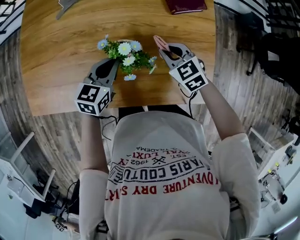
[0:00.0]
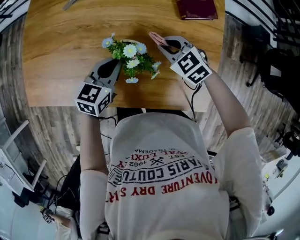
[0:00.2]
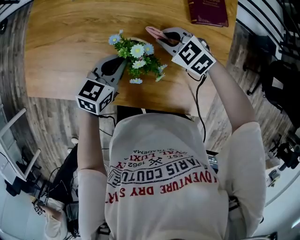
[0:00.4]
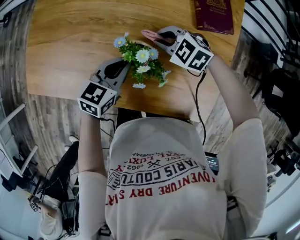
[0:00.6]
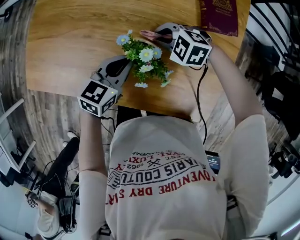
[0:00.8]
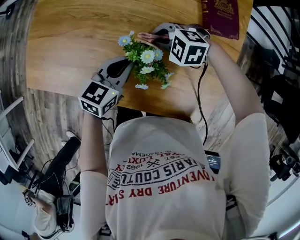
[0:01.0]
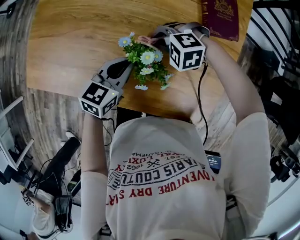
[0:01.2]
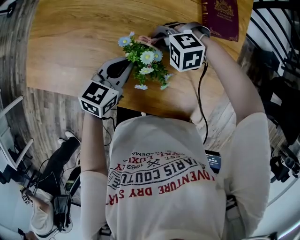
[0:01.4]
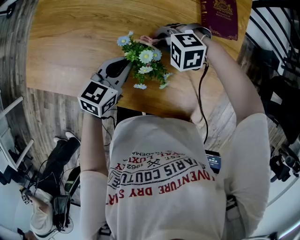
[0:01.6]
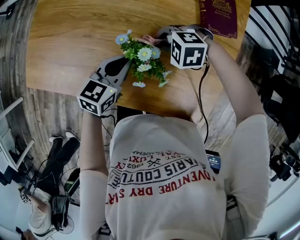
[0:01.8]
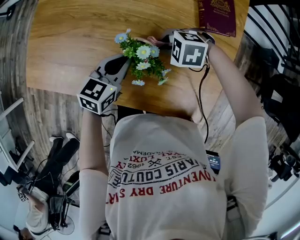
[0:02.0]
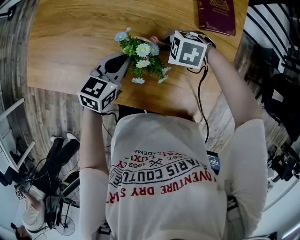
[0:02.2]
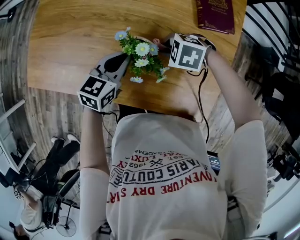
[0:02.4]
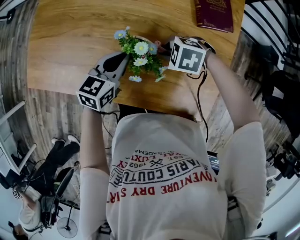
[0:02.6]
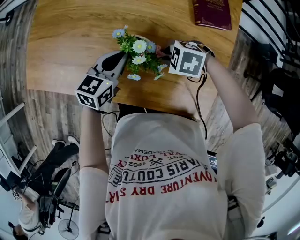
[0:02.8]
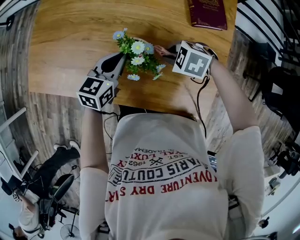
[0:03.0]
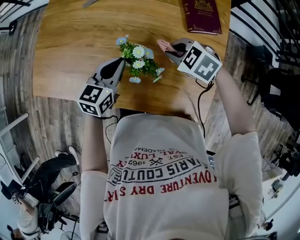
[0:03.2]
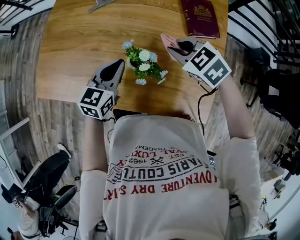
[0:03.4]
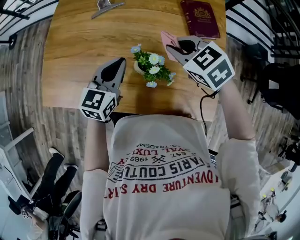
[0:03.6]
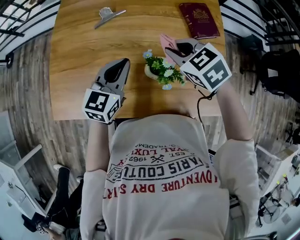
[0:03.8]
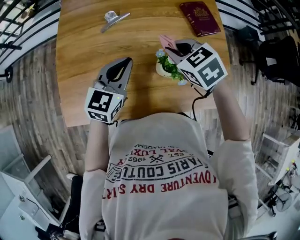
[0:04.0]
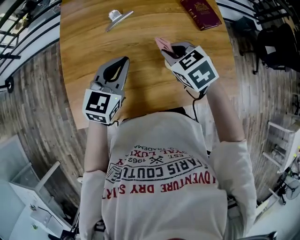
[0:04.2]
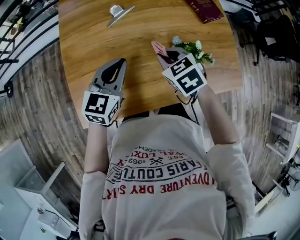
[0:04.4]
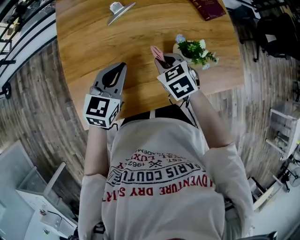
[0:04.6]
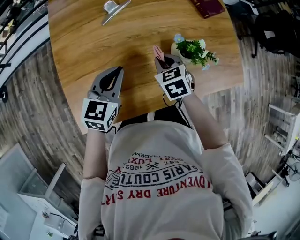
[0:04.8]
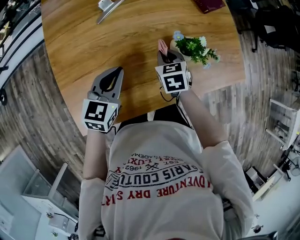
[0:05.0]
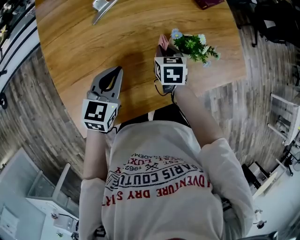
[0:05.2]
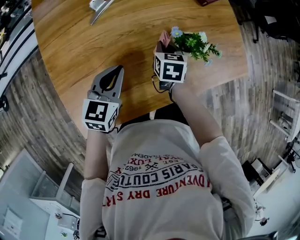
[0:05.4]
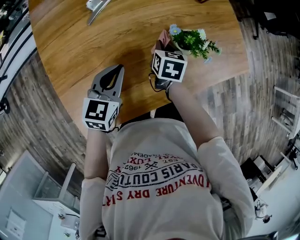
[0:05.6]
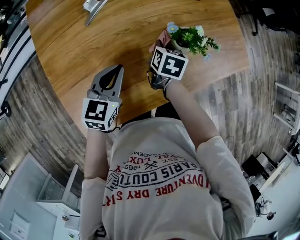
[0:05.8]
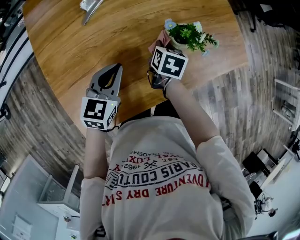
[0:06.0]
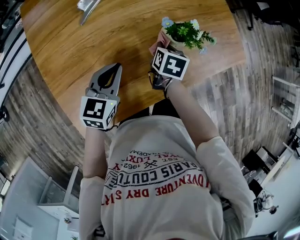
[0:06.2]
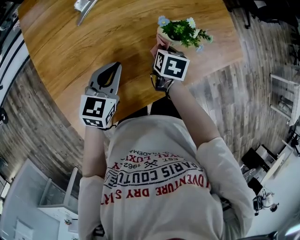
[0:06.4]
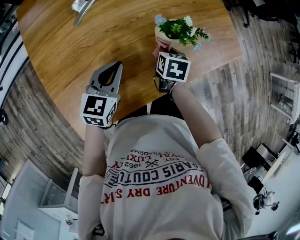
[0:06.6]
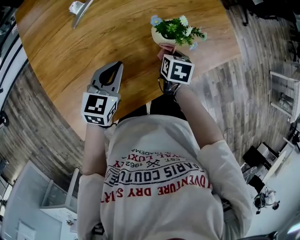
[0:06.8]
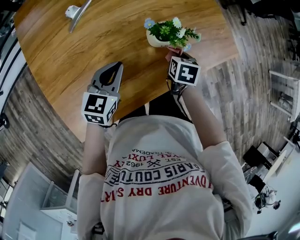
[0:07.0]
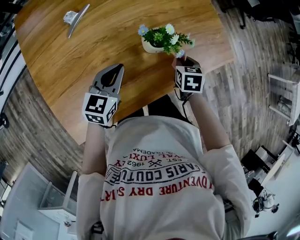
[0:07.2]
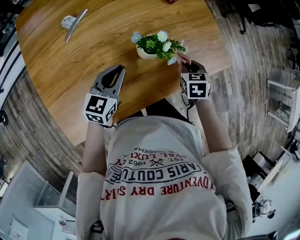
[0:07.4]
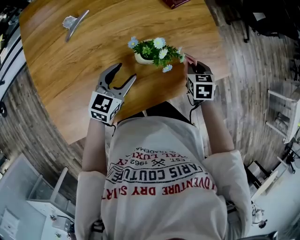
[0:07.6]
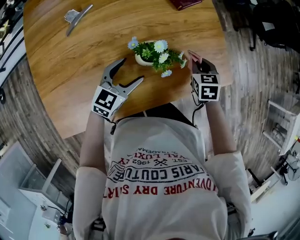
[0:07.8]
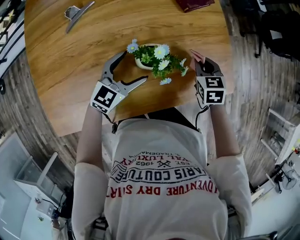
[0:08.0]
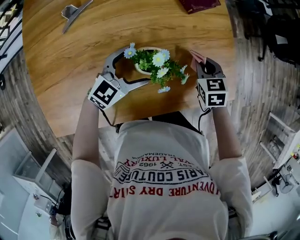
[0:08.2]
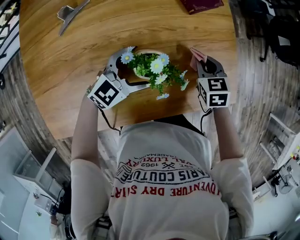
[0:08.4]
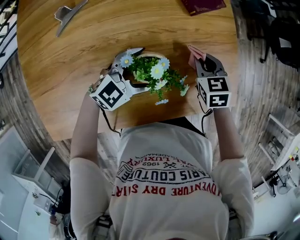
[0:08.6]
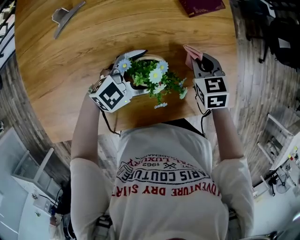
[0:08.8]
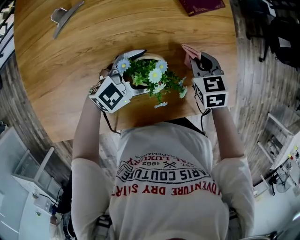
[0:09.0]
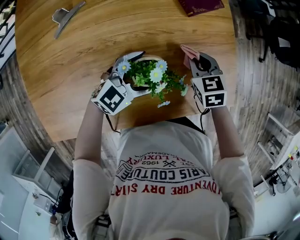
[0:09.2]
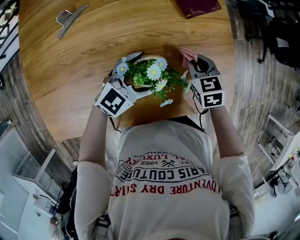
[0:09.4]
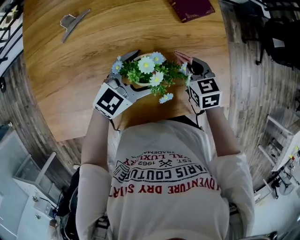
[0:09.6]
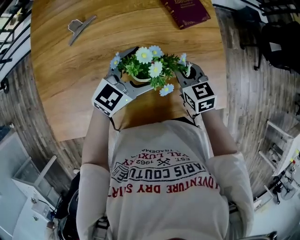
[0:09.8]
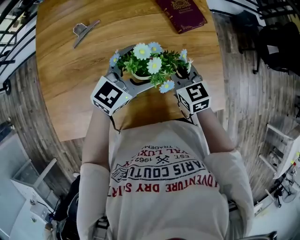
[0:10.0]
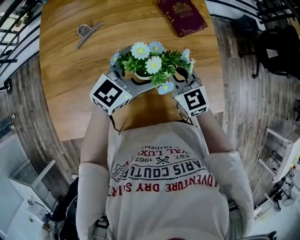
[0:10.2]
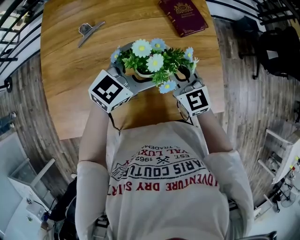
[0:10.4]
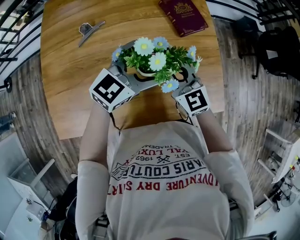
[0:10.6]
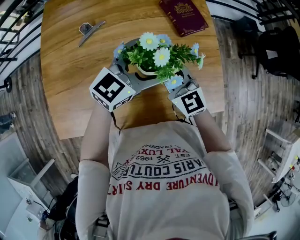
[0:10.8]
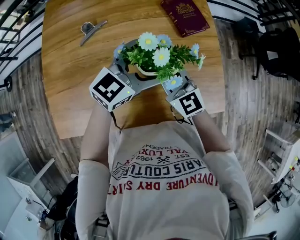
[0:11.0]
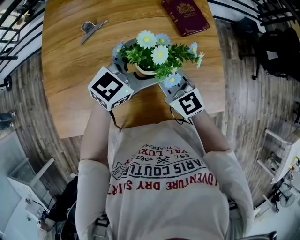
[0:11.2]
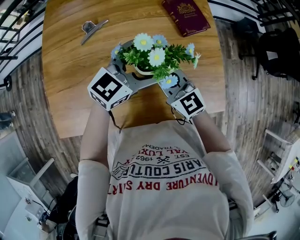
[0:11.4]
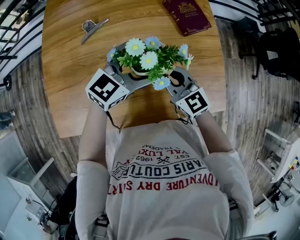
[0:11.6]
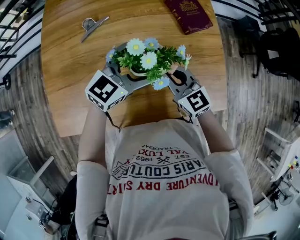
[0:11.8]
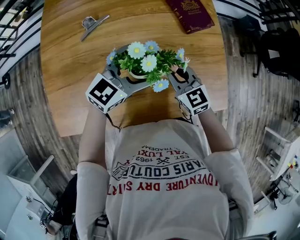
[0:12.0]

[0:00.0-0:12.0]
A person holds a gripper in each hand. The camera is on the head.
0:00.0 to 0:01.6: The right gripper ends up about 10 cm from where it was, and rolls counterclockwise, seen from behind, by approximately 60 degrees.
0:01.6 to 0:03.0: The right gripper ends up some 10 cm from where it was, and rotates some 30 degrees.
0:03.0 to 0:04.4: The right gripper shifts by about 25 cm, and swivels some 60 degrees. The left gripper ends up about 25 cm from where it was, and rotates roughly 30 degrees.
0:04.4 to 0:06.0: The left gripper moves downward, roughly 10 cm; the right gripper heads downward, covering about 15 cm, and rolls clockwise, seen from behind, by roughly 60 degrees.
0:06.0 to 0:07.6: The right gripper moves to the right, approximately 25 cm, and swivels some 30 degrees. Meanwhile the left gripper moves to the right and forward, approximately 15 cm, and opens its fingers.
0:07.6 to 0:09.0: The right gripper heads forward and to the left, covering roughly 15 cm, and turns by roughly 30 degrees; the left gripper heads forward and to the right, covering roughly 15 cm, rotates roughly 30 degrees, and opens its fingers.
0:09.0 to 0:10.4: The right gripper moves upward and to the left, roughly 20 cm, and points its fingers about 30 degrees further upward. The left gripper moves upward, some 20 cm, and changes its angle by roughly 20 degrees.
0:10.4 to 0:12.0: The right gripper moves downward, roughly 5 cm. The left gripper moves approximately 5 cm.

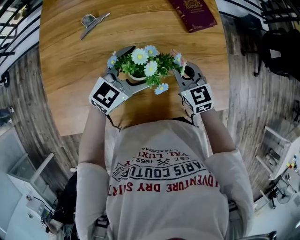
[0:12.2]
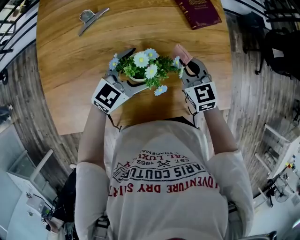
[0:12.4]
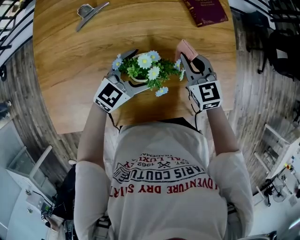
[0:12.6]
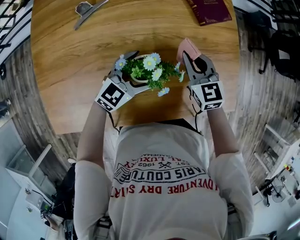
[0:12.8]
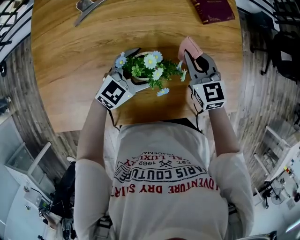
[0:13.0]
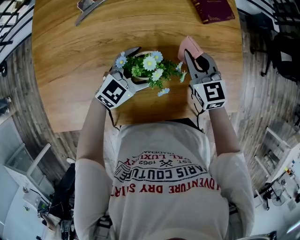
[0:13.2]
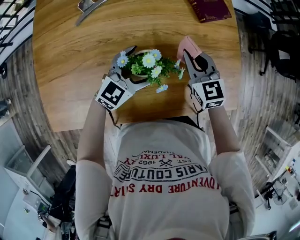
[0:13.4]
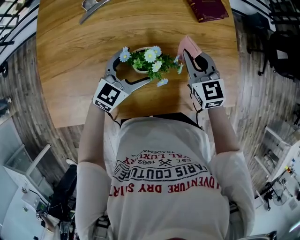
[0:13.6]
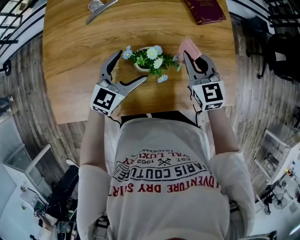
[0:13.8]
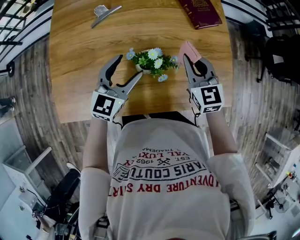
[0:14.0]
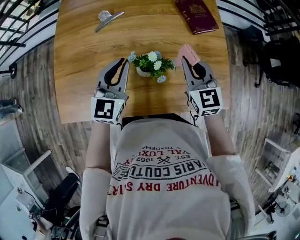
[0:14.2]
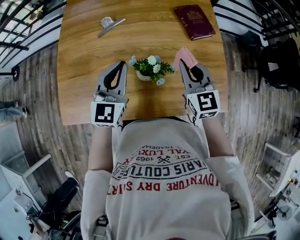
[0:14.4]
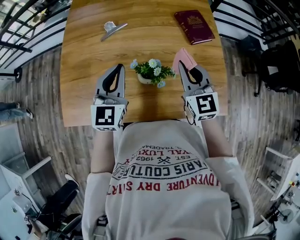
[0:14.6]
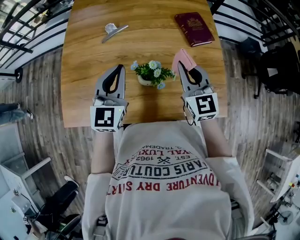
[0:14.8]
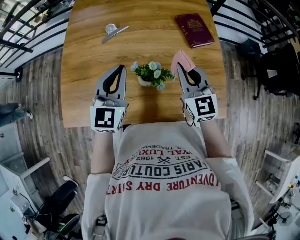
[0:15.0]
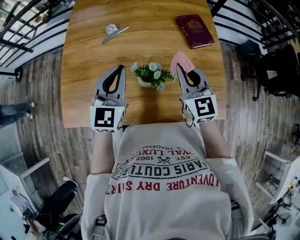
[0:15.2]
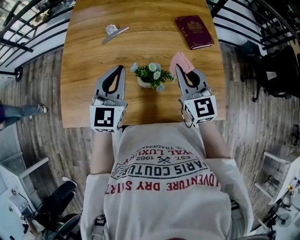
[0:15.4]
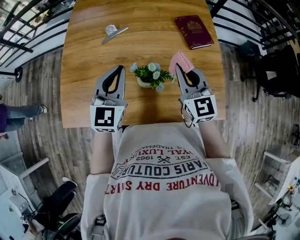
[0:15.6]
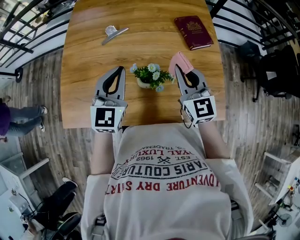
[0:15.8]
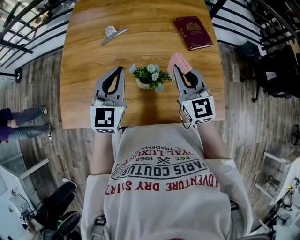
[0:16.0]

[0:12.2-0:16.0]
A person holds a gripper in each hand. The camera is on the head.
0:12.2 to 0:13.4: The left gripper is displaced downward by some 10 cm.
0:13.4 to 0:14.8: The left gripper moves upward and to the left, roughly 25 cm, swivels about 40 degrees, and closes its fingers, while the right gripper is displaced upward by roughly 15 cm.
0:14.8 to 0:16.0: Both grippers stay put.

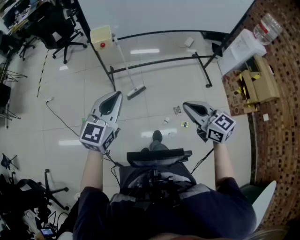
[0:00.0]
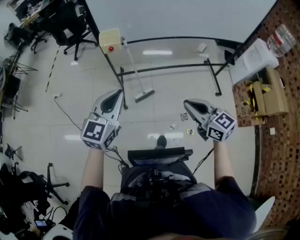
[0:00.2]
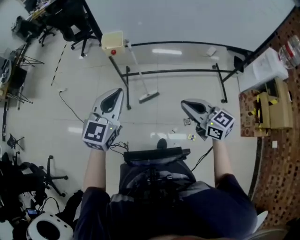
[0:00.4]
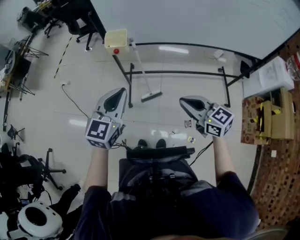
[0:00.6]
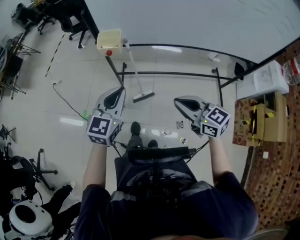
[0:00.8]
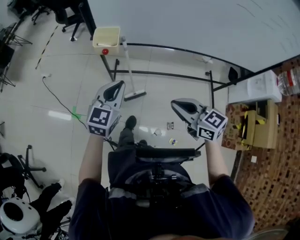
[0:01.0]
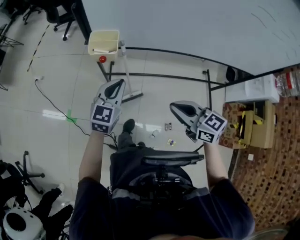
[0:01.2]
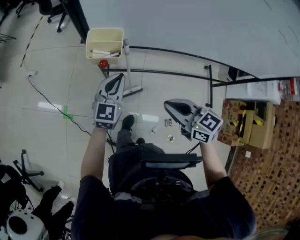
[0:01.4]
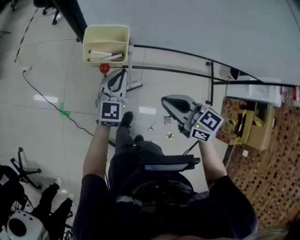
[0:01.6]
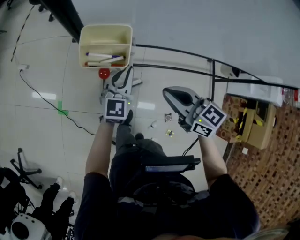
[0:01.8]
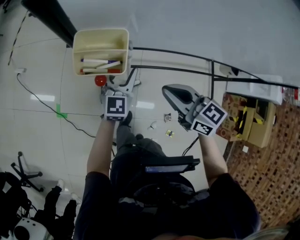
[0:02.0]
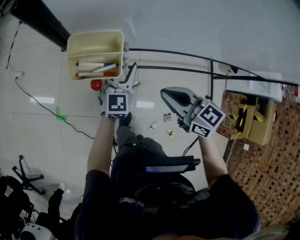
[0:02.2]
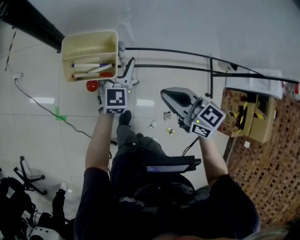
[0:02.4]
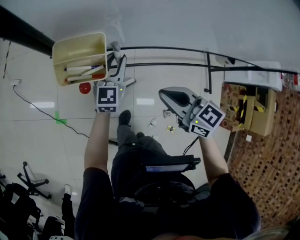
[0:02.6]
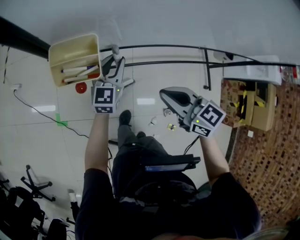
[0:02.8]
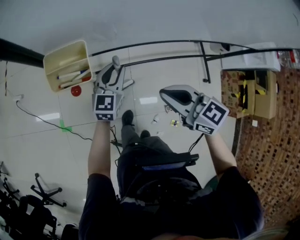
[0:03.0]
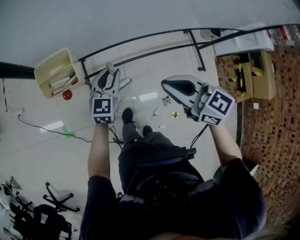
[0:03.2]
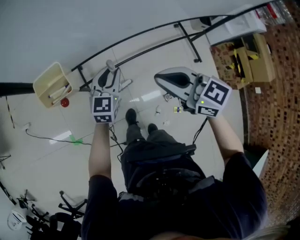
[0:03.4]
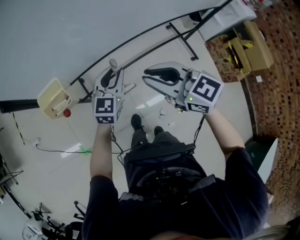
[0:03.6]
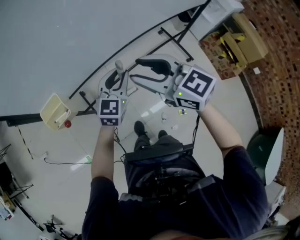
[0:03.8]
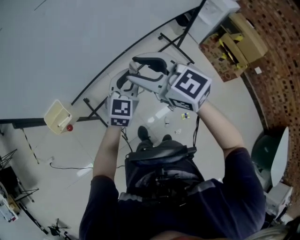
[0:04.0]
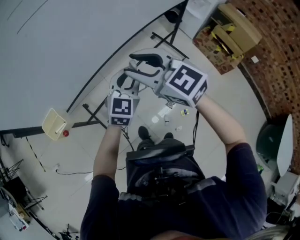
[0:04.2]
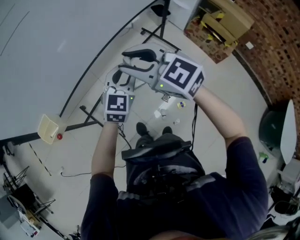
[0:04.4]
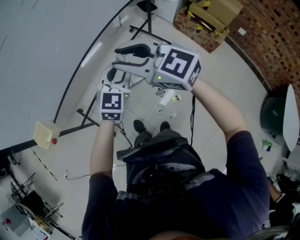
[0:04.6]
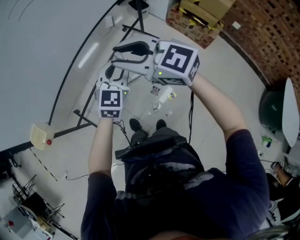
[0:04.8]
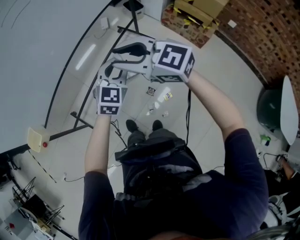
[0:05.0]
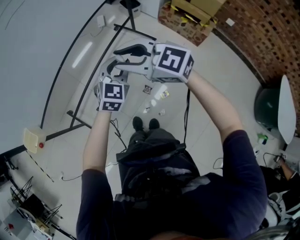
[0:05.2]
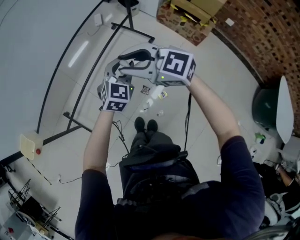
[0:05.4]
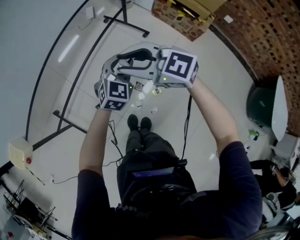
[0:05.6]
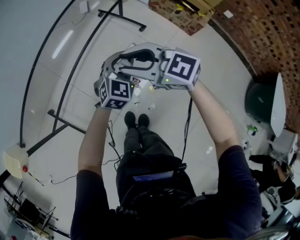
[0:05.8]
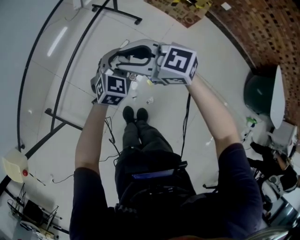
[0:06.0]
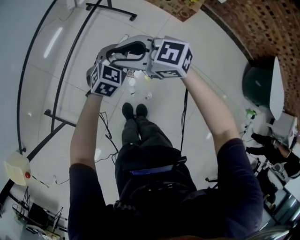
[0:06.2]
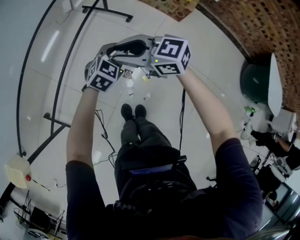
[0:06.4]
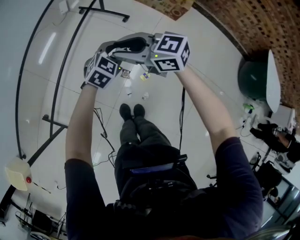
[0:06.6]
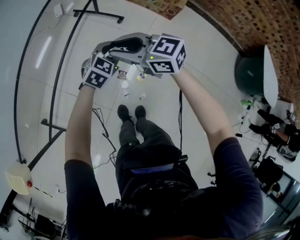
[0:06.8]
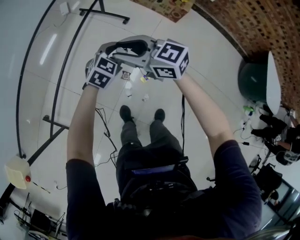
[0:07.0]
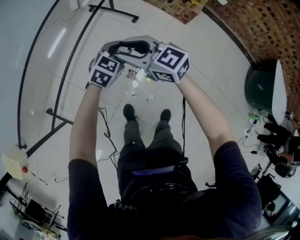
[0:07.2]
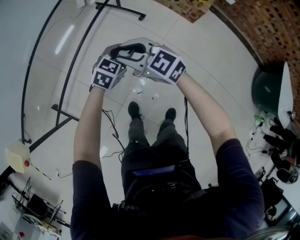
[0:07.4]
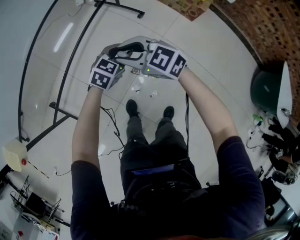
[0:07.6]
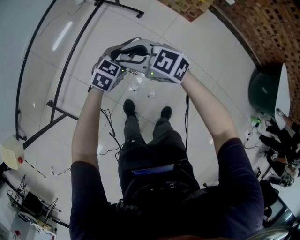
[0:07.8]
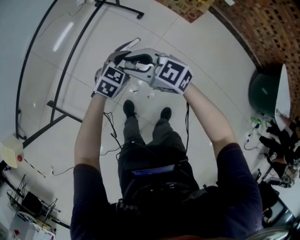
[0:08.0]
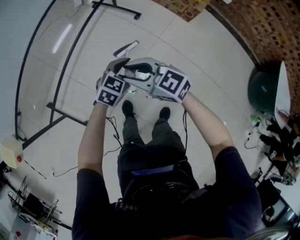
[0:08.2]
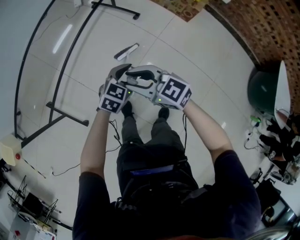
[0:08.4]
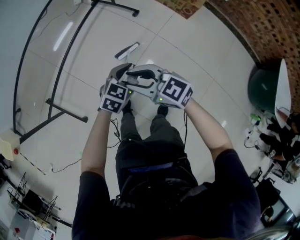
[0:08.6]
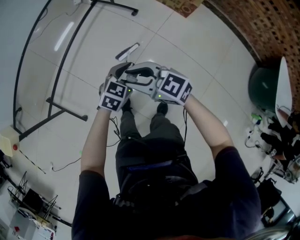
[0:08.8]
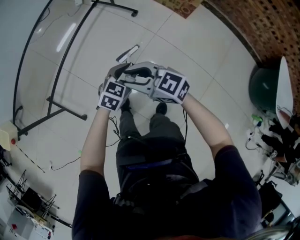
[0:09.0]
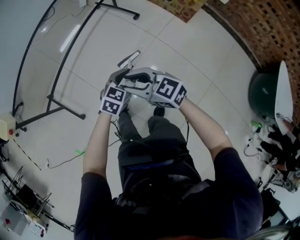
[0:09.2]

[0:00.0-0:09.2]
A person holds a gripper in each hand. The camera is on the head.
0:00.0 to 0:01.6: The right gripper goes some 40 cm forward, and changes its angle by some 20 degrees; the left gripper shifts roughly 50 cm forward and downward.
0:01.6 to 0:03.0: The right gripper moves to the right, about 5 cm; the left gripper moves to the right, about 10 cm, and opens up.
0:03.0 to 0:04.6: The right gripper ends up roughly 35 cm from where it was, changes its angle by roughly 40 degrees, and opens its fingers. The left gripper changes place by about 50 cm, and swivels roughly 50 degrees.
0:04.6 to 0:06.2: Both grippers travel together downward and to the right, about 30 cm. The left gripper swivels about 30 degrees.
0:06.2 to 0:07.6: There are only small adjustments of the grippers.
0:07.6 to 0:09.2: The grippers both shift backward by approximately 20 cm.
